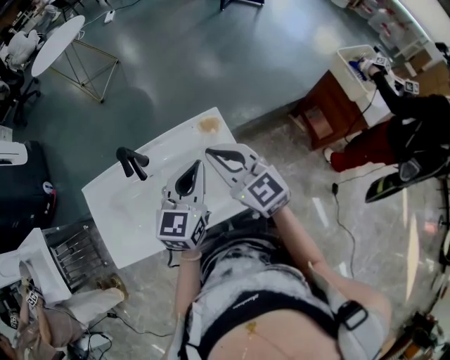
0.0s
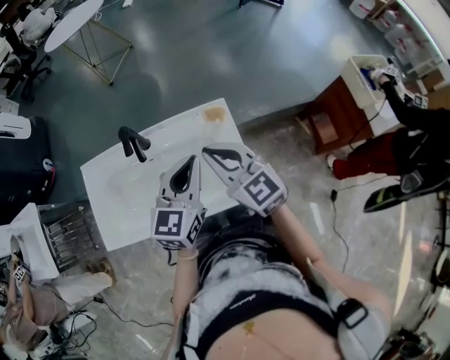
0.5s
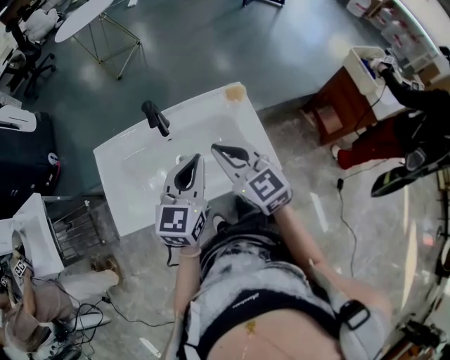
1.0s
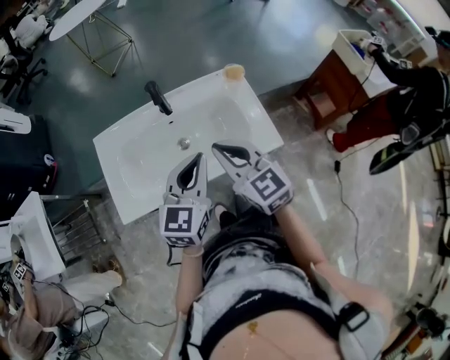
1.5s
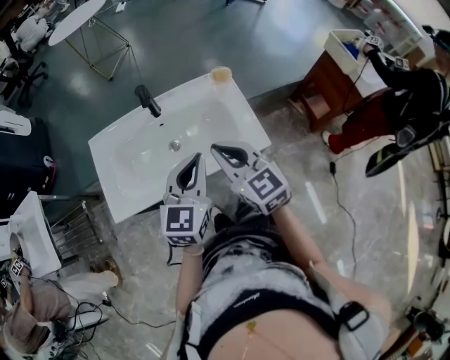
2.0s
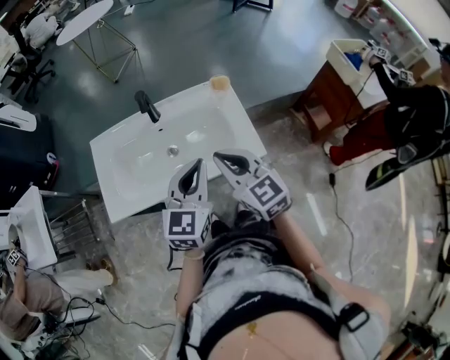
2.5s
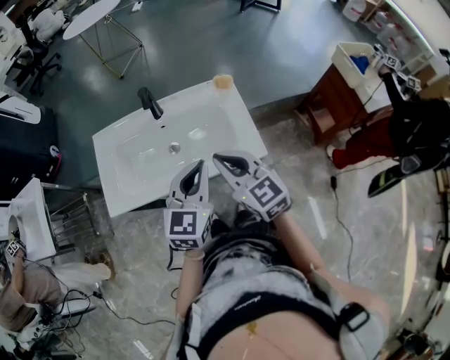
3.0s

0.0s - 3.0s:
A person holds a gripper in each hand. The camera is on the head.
0.0s - 1.5s: Both grippers travel together backward and to the left, some 20 cm.
1.5s - 3.0s: The two grippers go about 5 cm to the right.

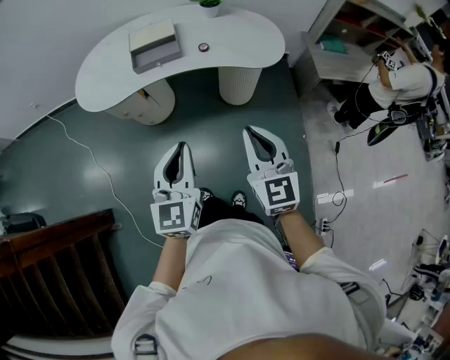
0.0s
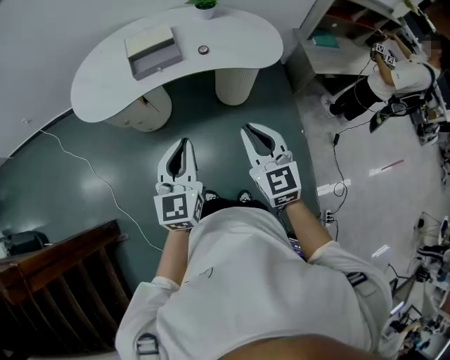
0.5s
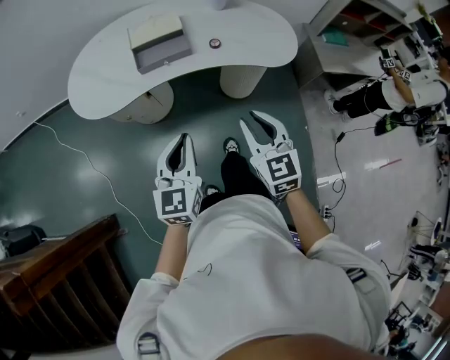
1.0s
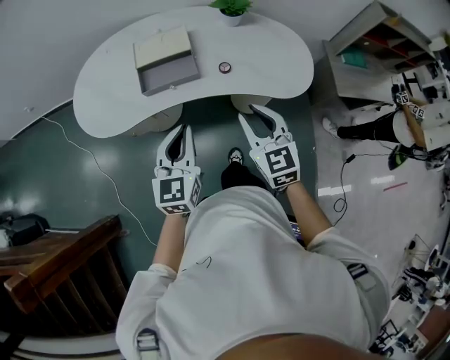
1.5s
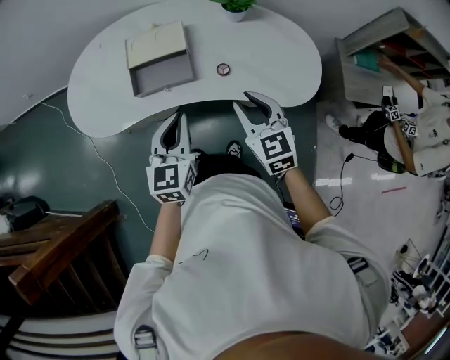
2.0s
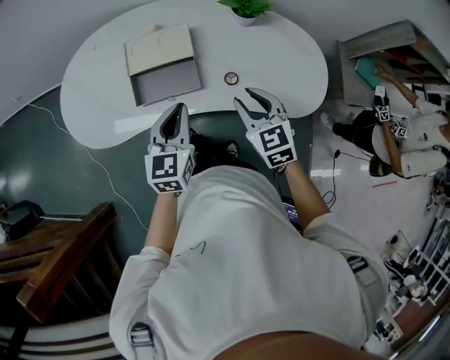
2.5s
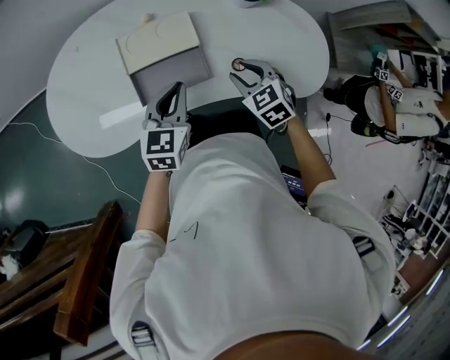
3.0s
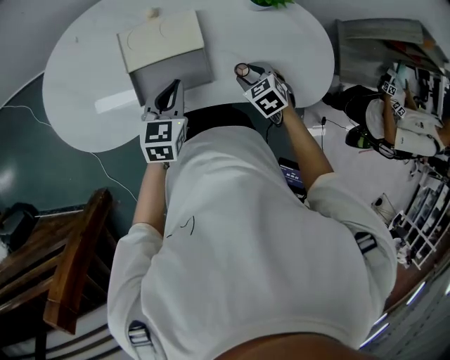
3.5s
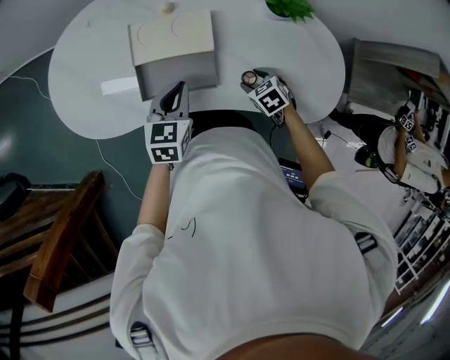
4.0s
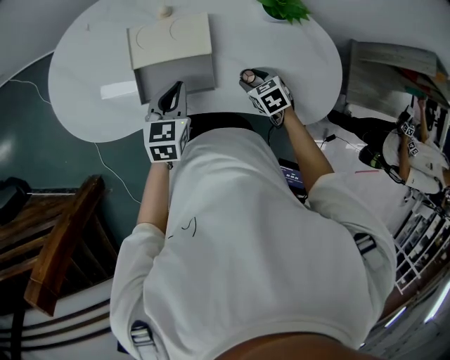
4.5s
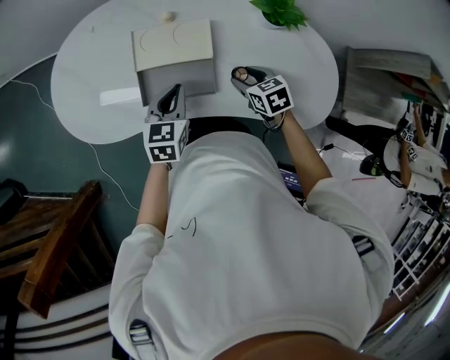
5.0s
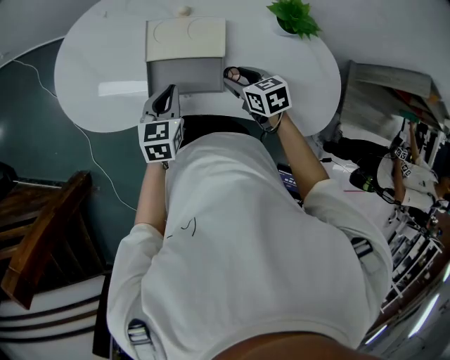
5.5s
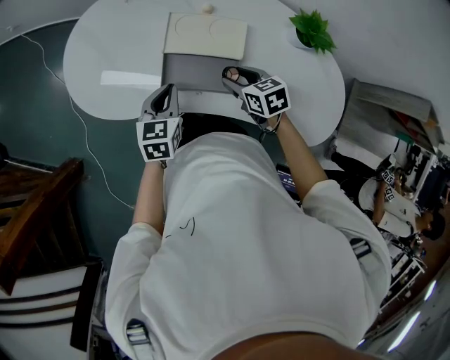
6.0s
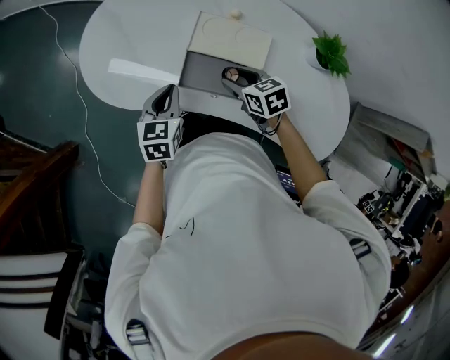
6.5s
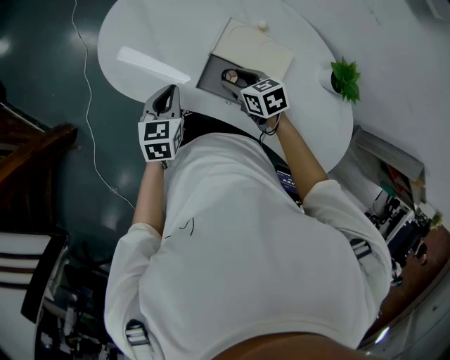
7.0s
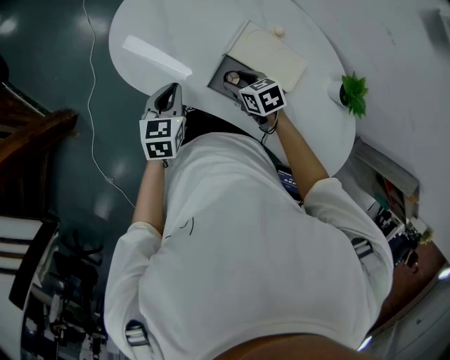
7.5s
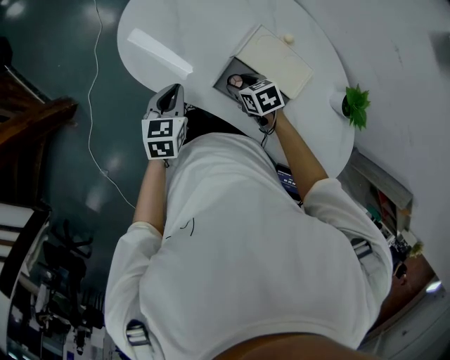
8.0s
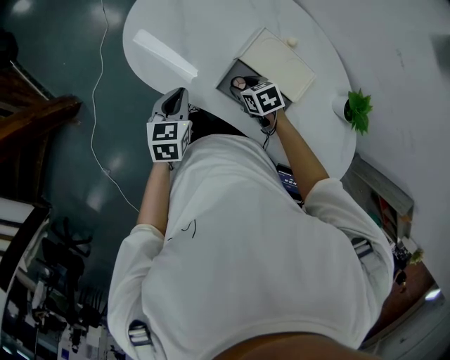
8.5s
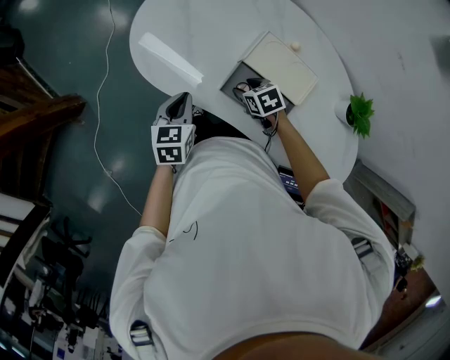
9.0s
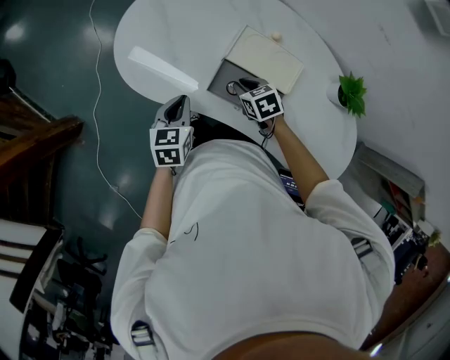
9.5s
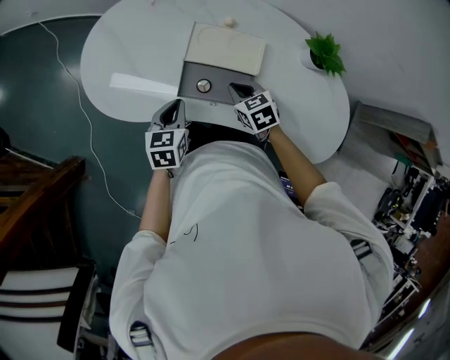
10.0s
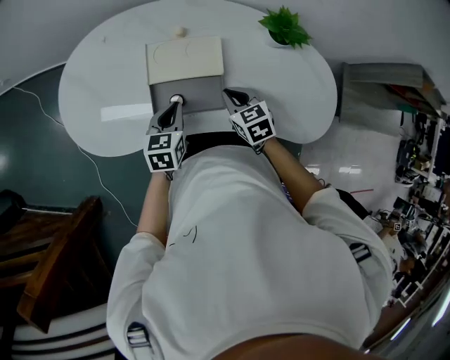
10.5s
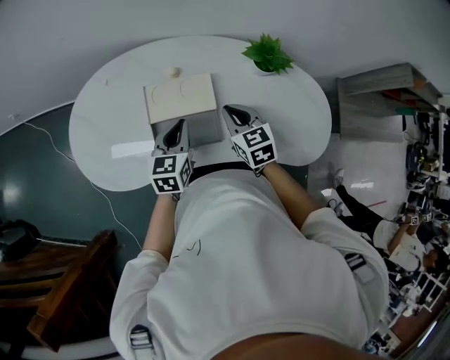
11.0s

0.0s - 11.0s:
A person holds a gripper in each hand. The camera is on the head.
0.0s - 2.0s: Both grippers move forward, roughly 35 cm. The right gripper opens up.
2.0s - 3.5s: The right gripper goes roughly 25 cm downward and forward, and tilts its fingers about 40 degrees downward. The left gripper heads forward, downward and to the left, covering approximately 25 cm, and turns by some 20 degrees.
3.5s - 5.5s: The left gripper goes some 5 cm to the left. The right gripper goes roughly 10 cm to the left and forward, goes downward and returns, about 5 cm each way, and swivels roughly 30 degrees.
5.5s - 7.5s: The right gripper moves approximately 20 cm, and changes its angle by about 30 degrees. Meanwhile the left gripper ends up approximately 20 cm from where it was, and changes its angle by some 30 degrees.
7.5s - 9.0s: The grippers stay close to where they were, moving slightly.
9.0s - 11.0s: The left gripper shifts by about 25 cm, and changes its angle by roughly 40 degrees. Meanwhile the right gripper moves some 25 cm, changes its angle by about 50 degrees, and closes up.

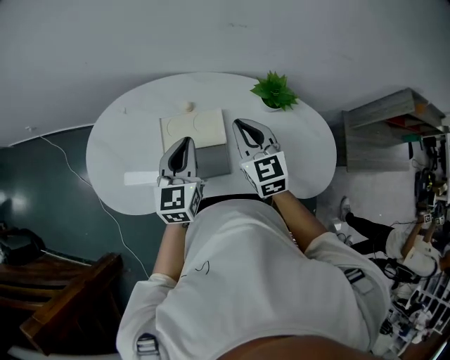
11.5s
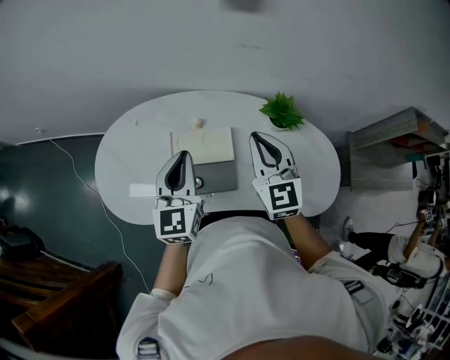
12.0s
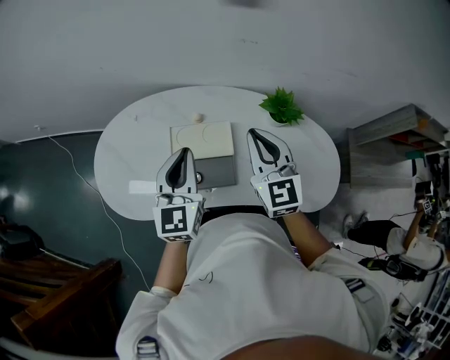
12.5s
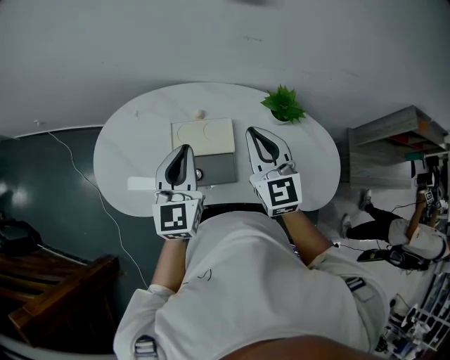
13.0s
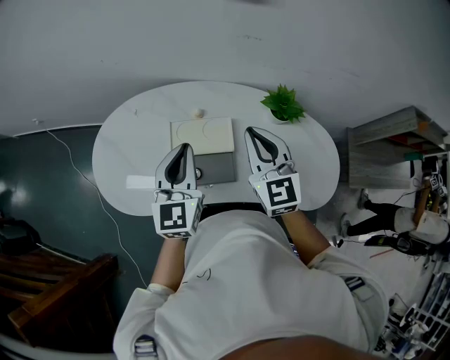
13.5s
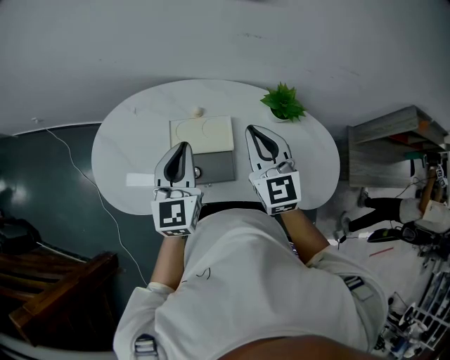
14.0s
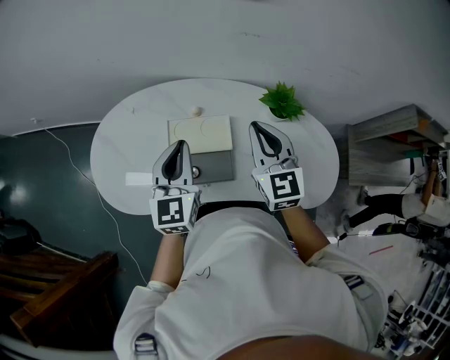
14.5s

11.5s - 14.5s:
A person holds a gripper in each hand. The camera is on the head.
11.5s - 13.0s: Both grippers travel together upward, approximately 5 cm.
13.0s - 14.5s: There are only small adjustments of the grippers.

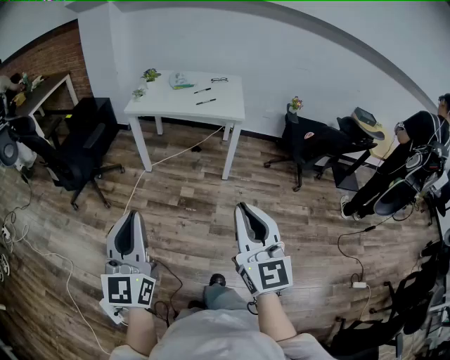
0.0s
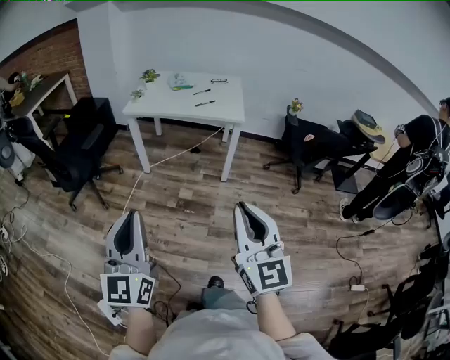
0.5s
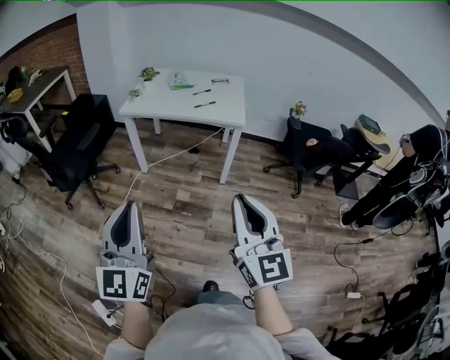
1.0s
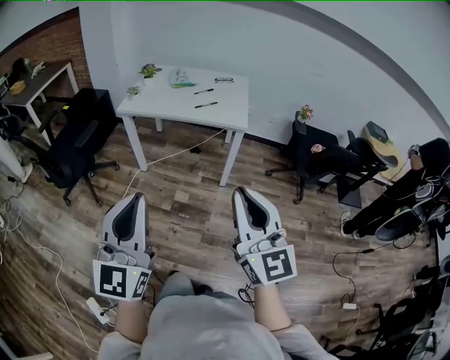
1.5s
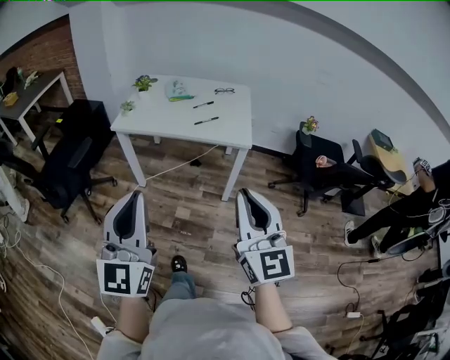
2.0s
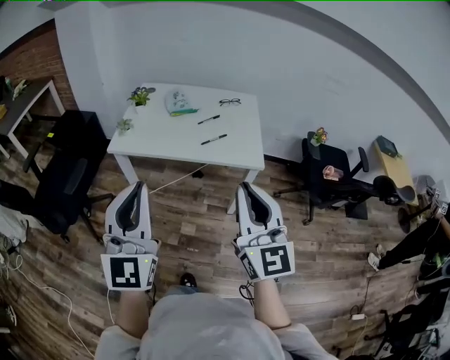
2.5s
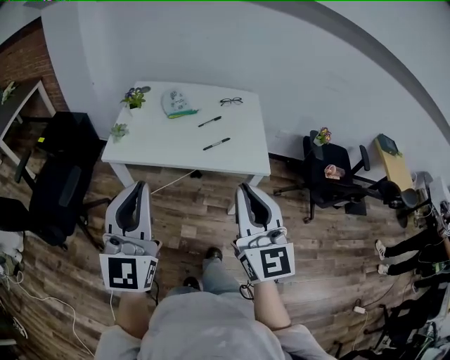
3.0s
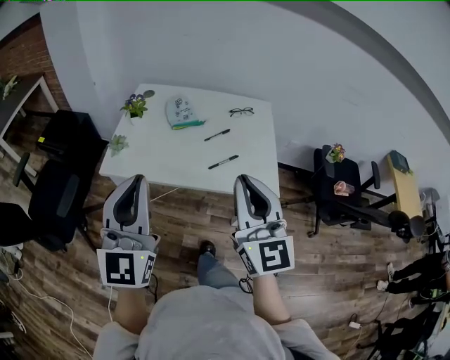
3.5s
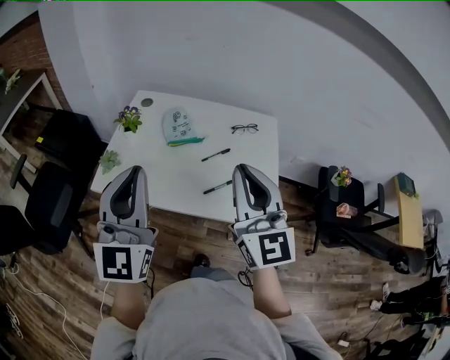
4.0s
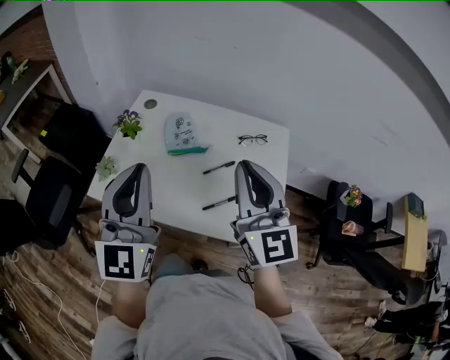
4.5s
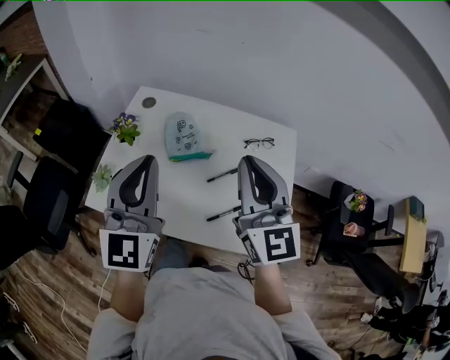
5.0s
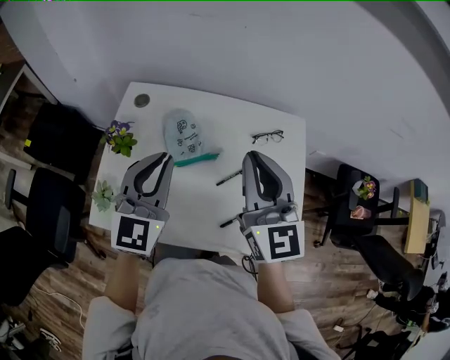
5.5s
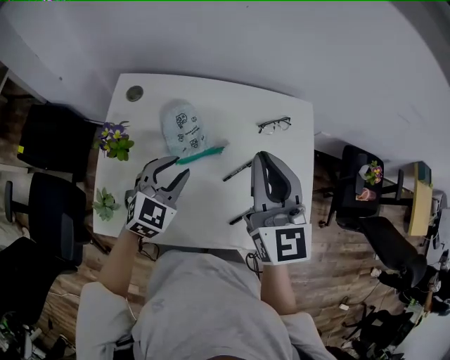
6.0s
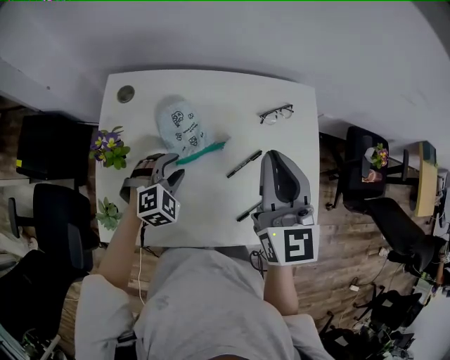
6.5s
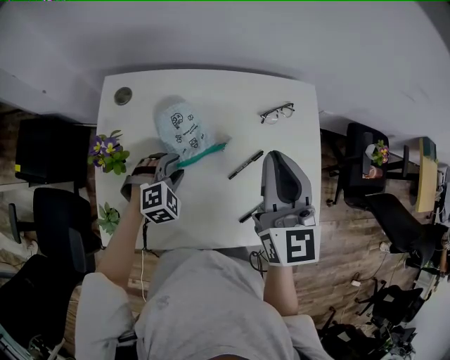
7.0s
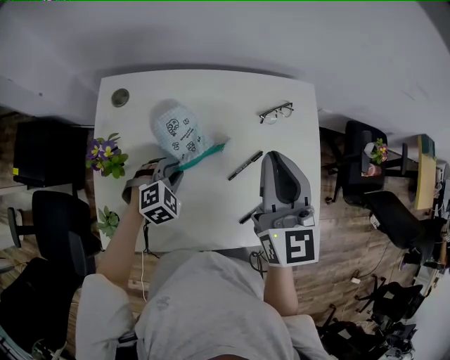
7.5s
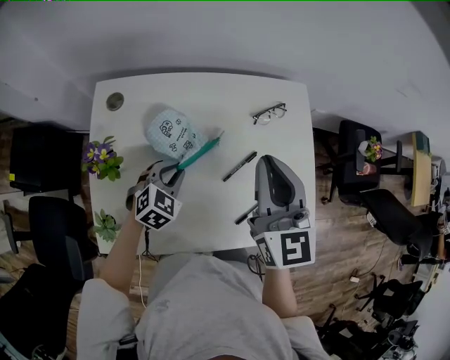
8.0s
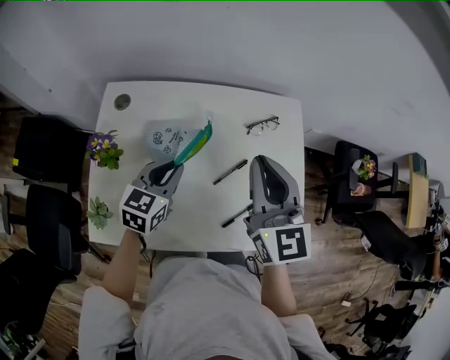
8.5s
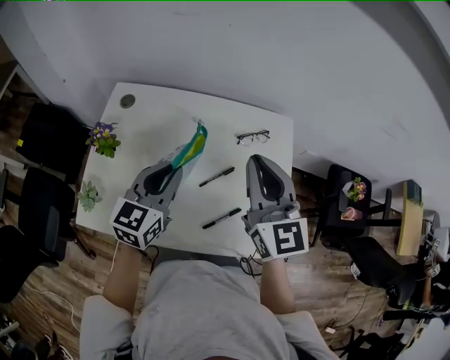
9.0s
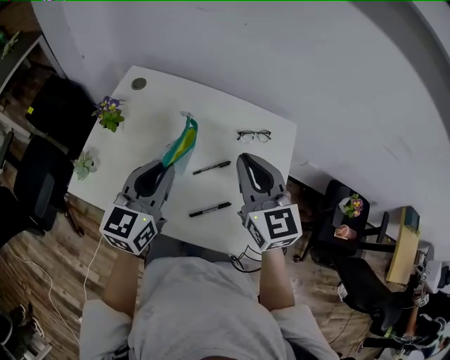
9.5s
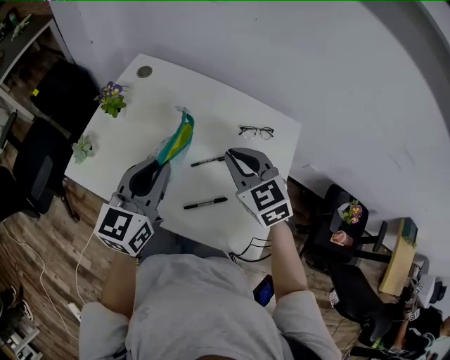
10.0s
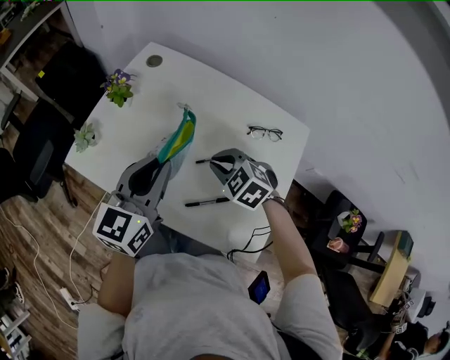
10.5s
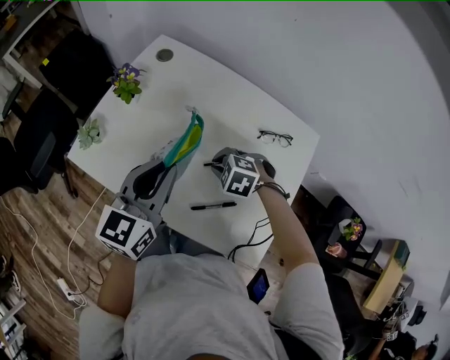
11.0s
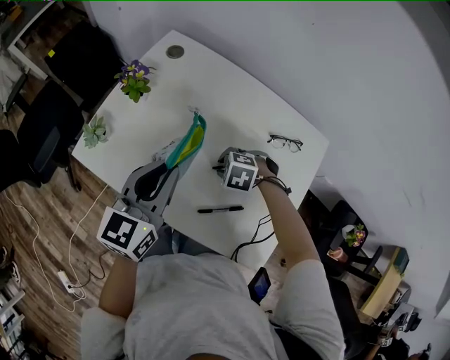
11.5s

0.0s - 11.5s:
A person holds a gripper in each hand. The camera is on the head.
0.0s - 2.0s: The two grippers go some 30 cm forward.
2.0s - 4.0s: Both grippers are carried forward, about 50 cm.
4.0s - 6.0s: The left gripper is displaced forward and downward by about 40 cm, angles its fingers downward, by roughly 40 degrees, and opens. Meanwhile the right gripper is displaced forward by some 25 cm.
6.0s - 7.5s: The left gripper travels downward by roughly 15 cm, and changes its angle by about 30 degrees.
7.5s - 9.5s: The right gripper shifts by approximately 10 cm, and turns by approximately 30 degrees. Meanwhile the left gripper heads upward, covering some 25 cm, and angles its fingers upward, by approximately 50 degrees.
9.5s - 11.5s: The left gripper shifts by some 5 cm. Meanwhile the right gripper goes about 30 cm downward, and points its fingers roughly 70 degrees further downward.
